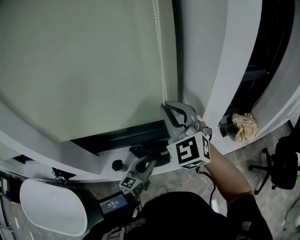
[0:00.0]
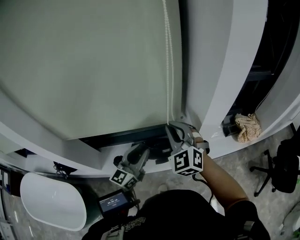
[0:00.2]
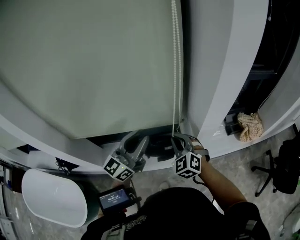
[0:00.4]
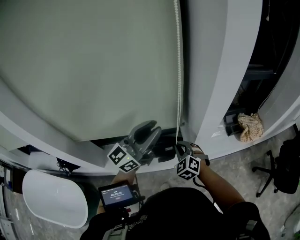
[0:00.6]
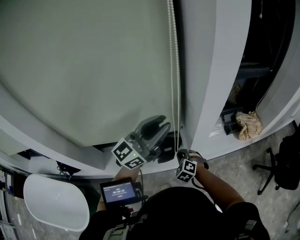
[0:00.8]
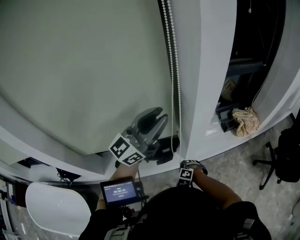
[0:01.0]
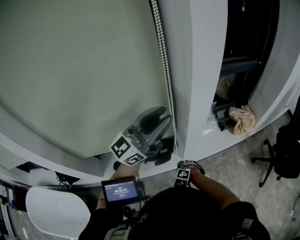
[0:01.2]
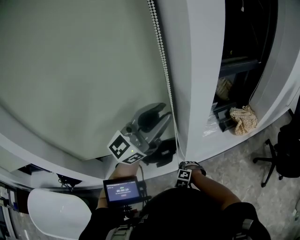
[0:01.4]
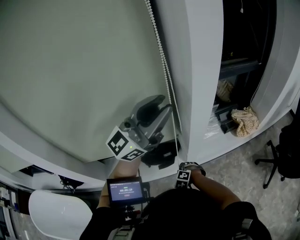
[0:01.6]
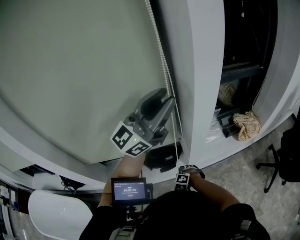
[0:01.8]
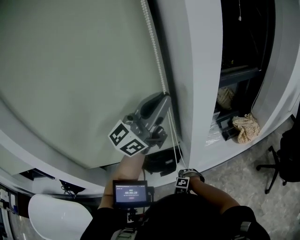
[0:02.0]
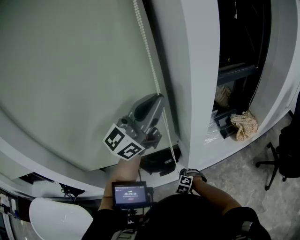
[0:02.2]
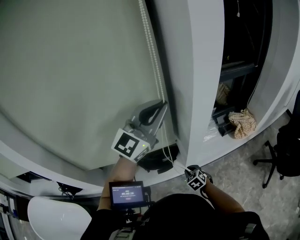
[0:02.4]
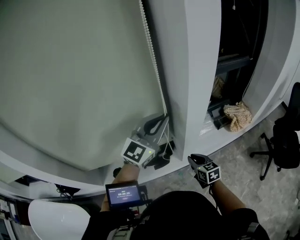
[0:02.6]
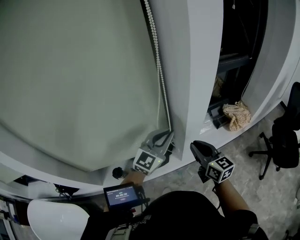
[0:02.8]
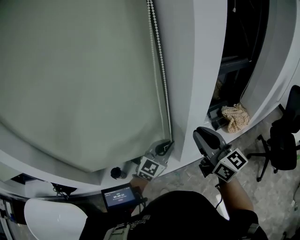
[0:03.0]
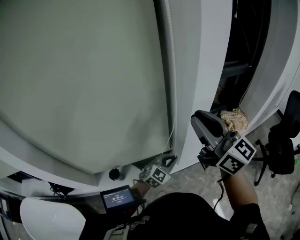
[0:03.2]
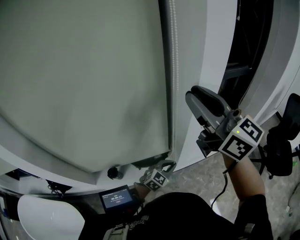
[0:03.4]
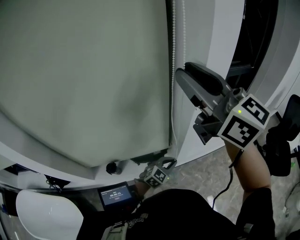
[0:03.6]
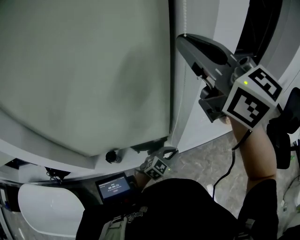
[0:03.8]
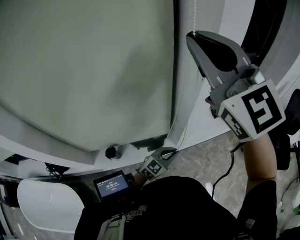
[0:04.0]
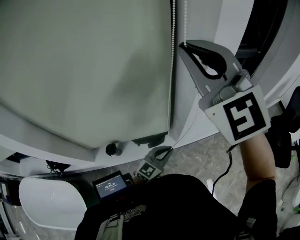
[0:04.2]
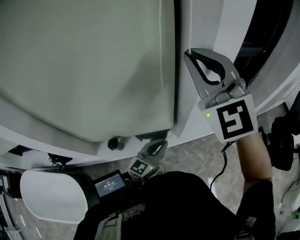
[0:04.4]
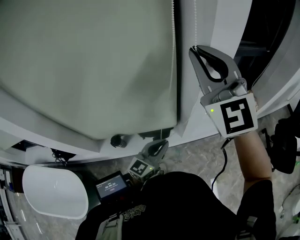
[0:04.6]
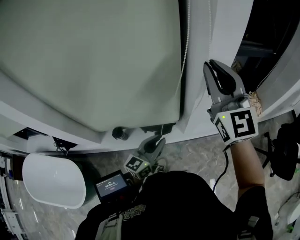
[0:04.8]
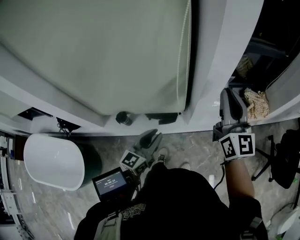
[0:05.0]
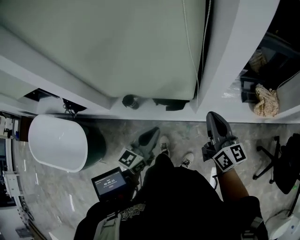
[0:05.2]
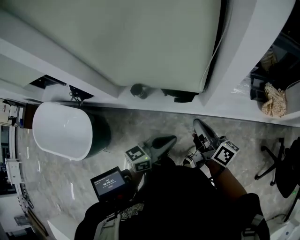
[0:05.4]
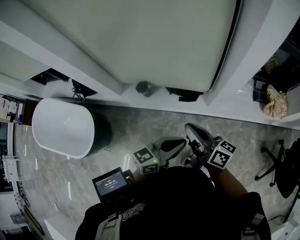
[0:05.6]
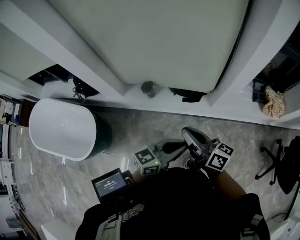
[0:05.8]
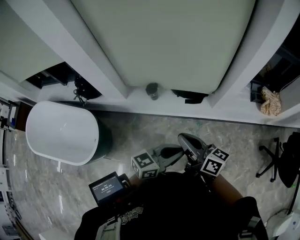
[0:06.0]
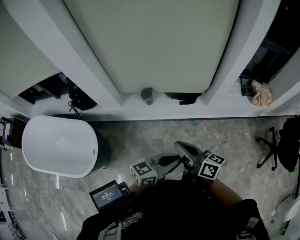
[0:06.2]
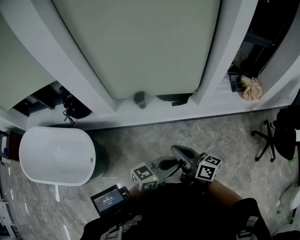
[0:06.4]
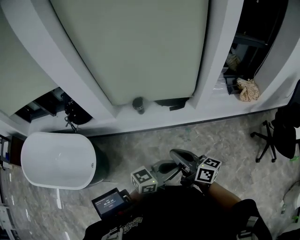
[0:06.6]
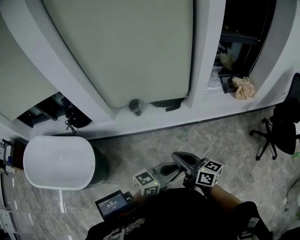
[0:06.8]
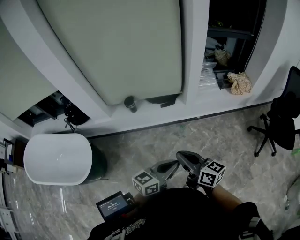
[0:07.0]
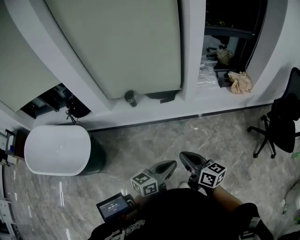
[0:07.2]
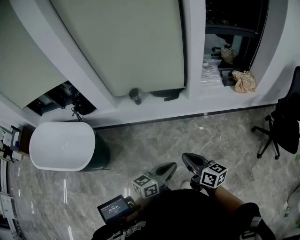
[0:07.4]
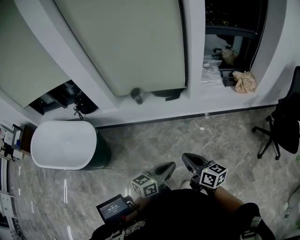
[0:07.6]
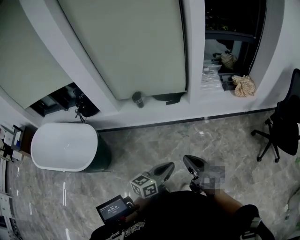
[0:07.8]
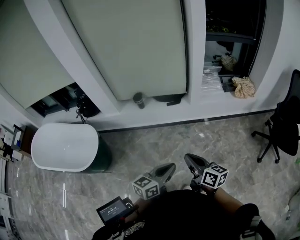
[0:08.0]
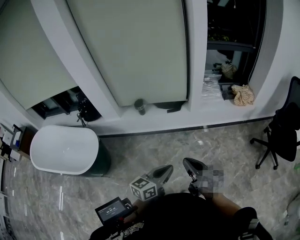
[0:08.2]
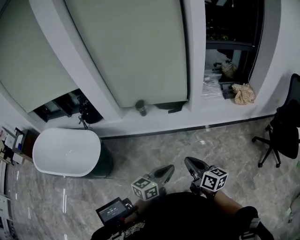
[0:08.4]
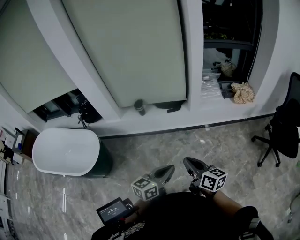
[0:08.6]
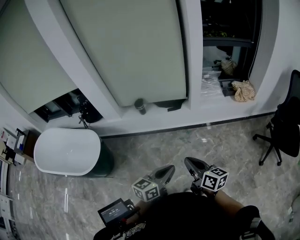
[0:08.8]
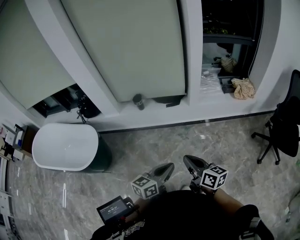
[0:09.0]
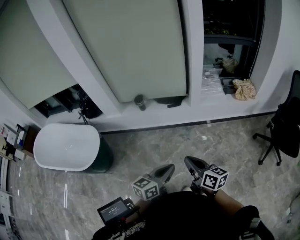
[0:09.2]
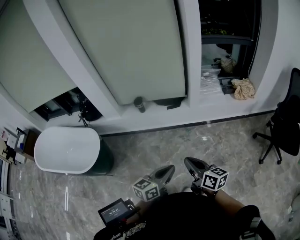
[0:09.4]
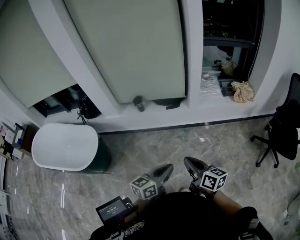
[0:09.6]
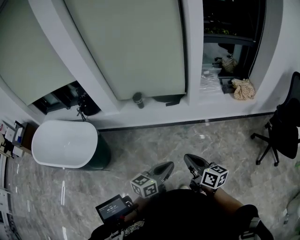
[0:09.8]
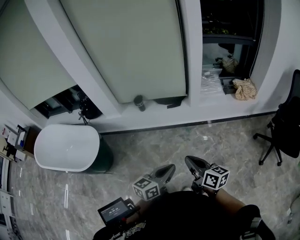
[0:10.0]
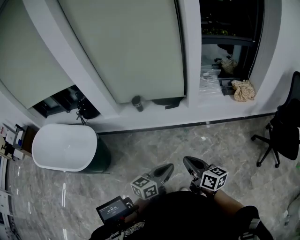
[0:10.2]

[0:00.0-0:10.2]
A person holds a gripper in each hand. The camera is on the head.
0:00.0 to 0:01.4: The left gripper moves upward, approximately 35 cm, and rotates roughly 50 degrees. The right gripper travels downward by roughly 50 cm, and tilts its fingers roughly 60 degrees downward.
0:01.4 to 0:03.0: The left gripper heads downward, covering roughly 25 cm, angles its fingers downward, by roughly 30 degrees, and closes up; the right gripper is displaced upward by roughly 40 cm, and tilts its fingers approximately 70 degrees upward.
0:03.0 to 0:04.4: The left gripper is displaced backward by about 10 cm, travels downward and back again, some 15 cm each way, and rotates roughly 20 degrees. Meanwhile the right gripper heads upward and to the left, covering approximately 20 cm, and rotates around the line of its fingers by roughly 50 degrees, counterclockwise from behind.
0:04.4 to 0:05.8: The right gripper goes some 40 cm downward and backward, and rotates around the line of its fingers by about 80 degrees, clockwise from behind; the left gripper heads backward, covering approximately 25 cm, and swivels roughly 20 degrees.
0:05.8 to 0:07.2: The right gripper is displaced backward and to the right by some 30 cm, and rotates roughly 20 degrees. The left gripper is displaced backward by some 25 cm.
0:07.2 to 0:08.8: The right gripper goes some 5 cm backward; the left gripper shifts by approximately 5 cm.
0:08.8 to 0:10.2: The grippers move only a little.

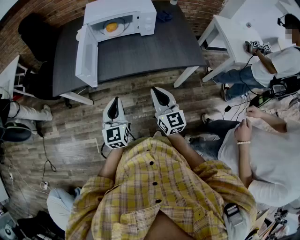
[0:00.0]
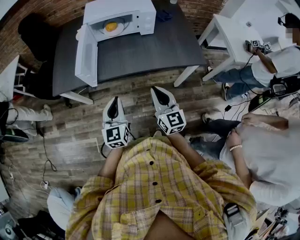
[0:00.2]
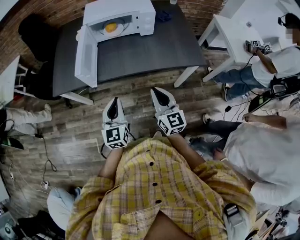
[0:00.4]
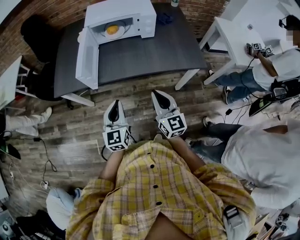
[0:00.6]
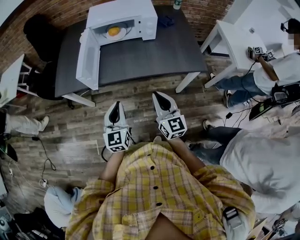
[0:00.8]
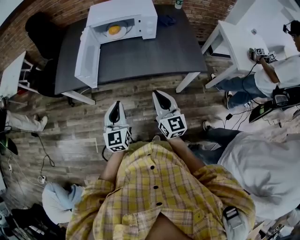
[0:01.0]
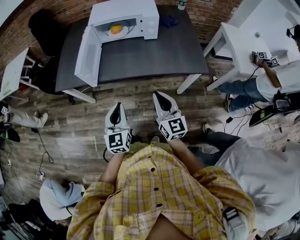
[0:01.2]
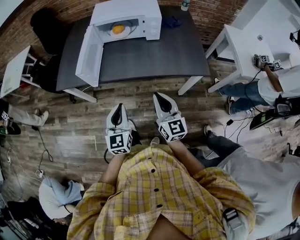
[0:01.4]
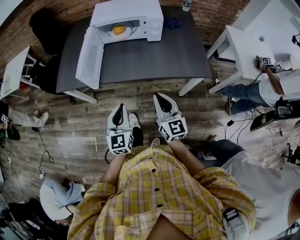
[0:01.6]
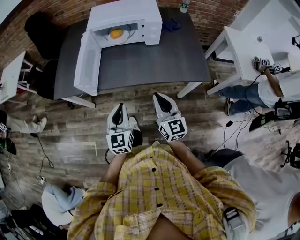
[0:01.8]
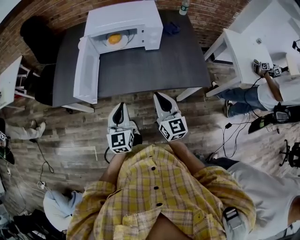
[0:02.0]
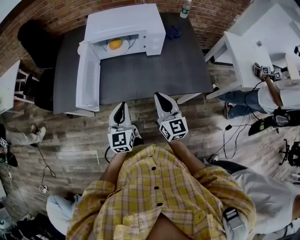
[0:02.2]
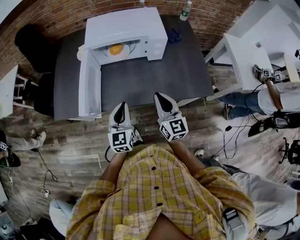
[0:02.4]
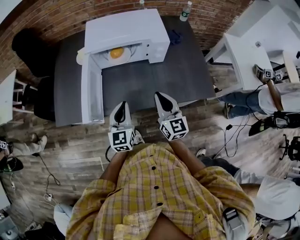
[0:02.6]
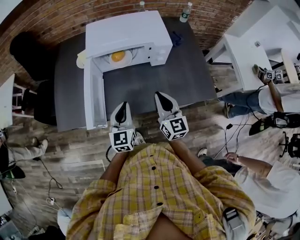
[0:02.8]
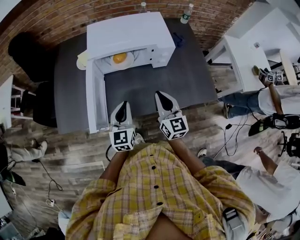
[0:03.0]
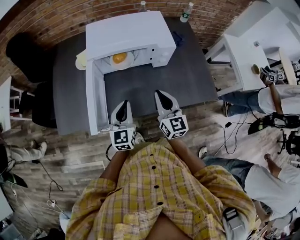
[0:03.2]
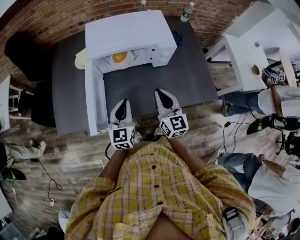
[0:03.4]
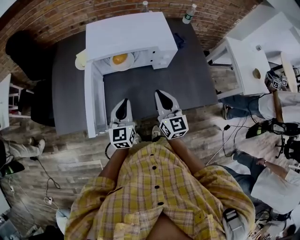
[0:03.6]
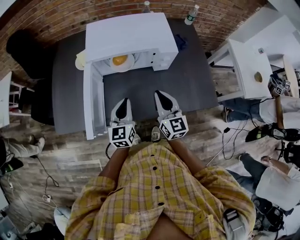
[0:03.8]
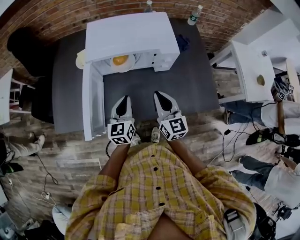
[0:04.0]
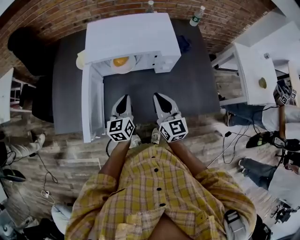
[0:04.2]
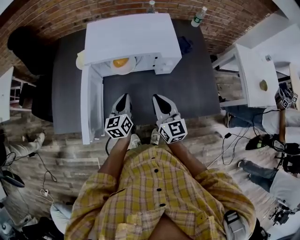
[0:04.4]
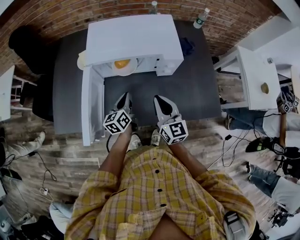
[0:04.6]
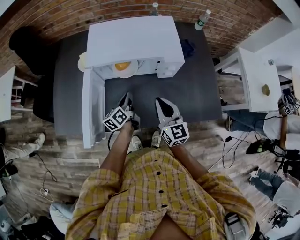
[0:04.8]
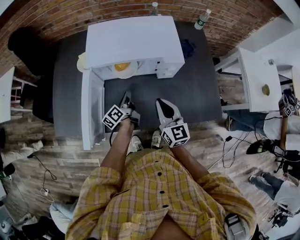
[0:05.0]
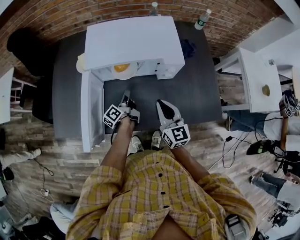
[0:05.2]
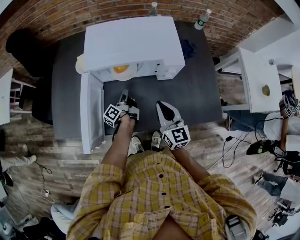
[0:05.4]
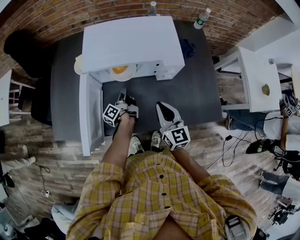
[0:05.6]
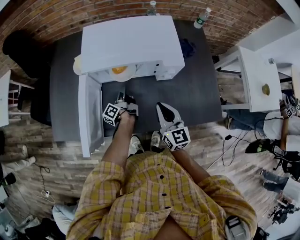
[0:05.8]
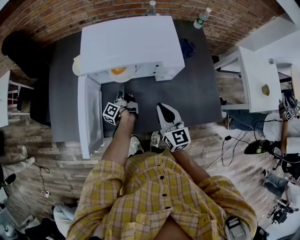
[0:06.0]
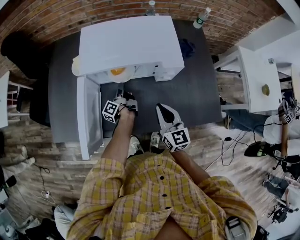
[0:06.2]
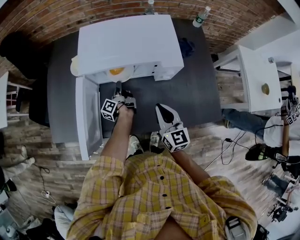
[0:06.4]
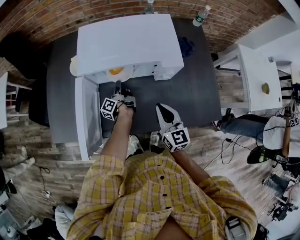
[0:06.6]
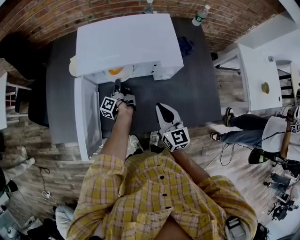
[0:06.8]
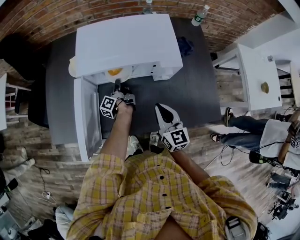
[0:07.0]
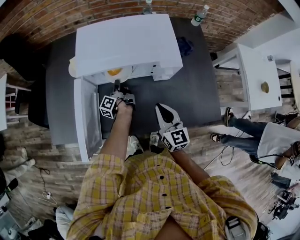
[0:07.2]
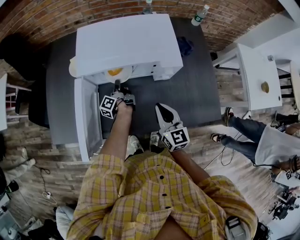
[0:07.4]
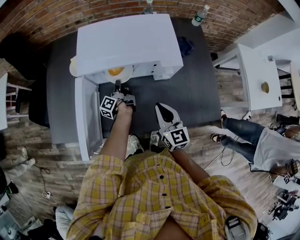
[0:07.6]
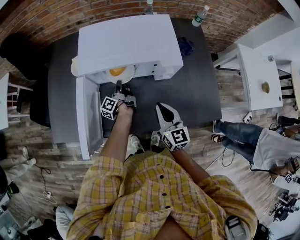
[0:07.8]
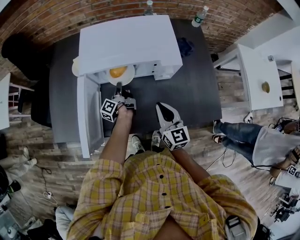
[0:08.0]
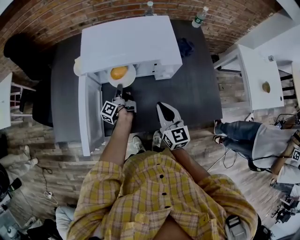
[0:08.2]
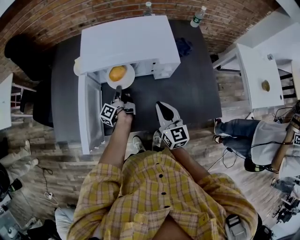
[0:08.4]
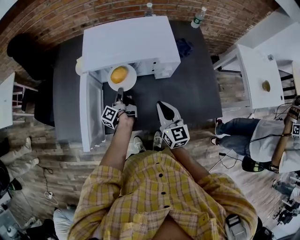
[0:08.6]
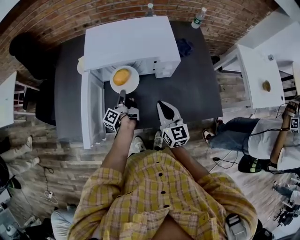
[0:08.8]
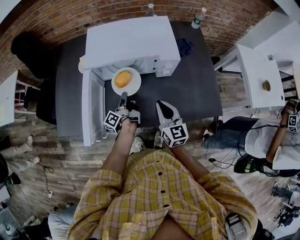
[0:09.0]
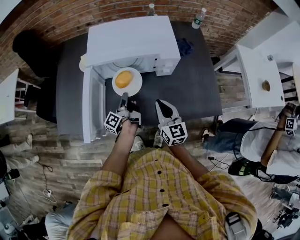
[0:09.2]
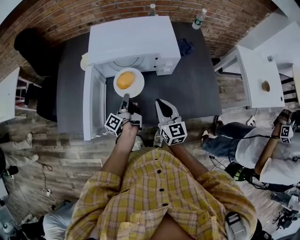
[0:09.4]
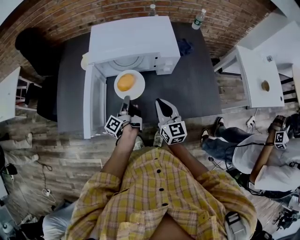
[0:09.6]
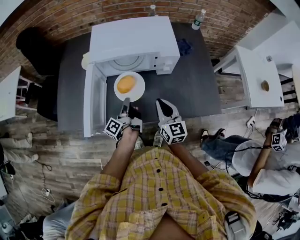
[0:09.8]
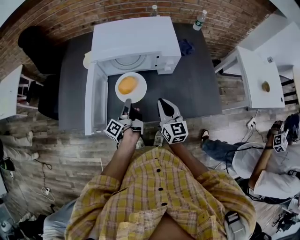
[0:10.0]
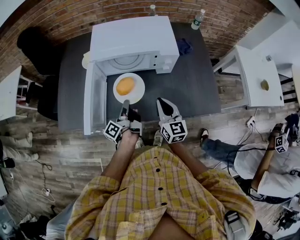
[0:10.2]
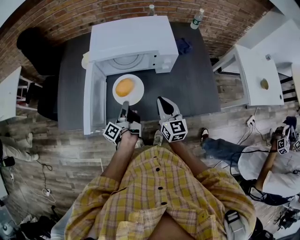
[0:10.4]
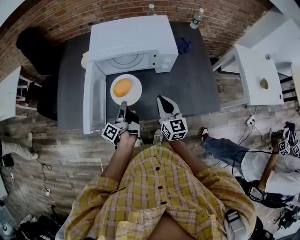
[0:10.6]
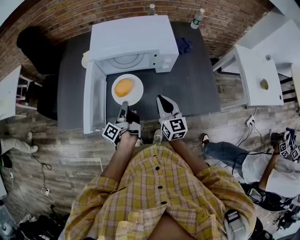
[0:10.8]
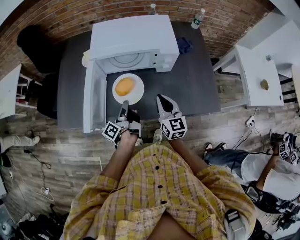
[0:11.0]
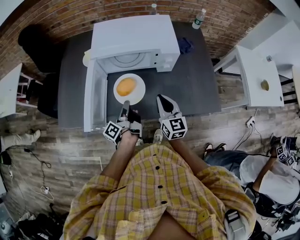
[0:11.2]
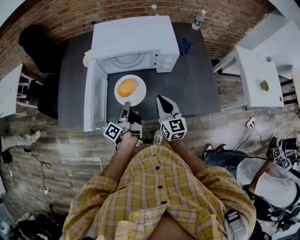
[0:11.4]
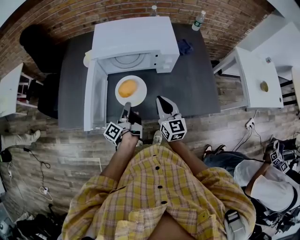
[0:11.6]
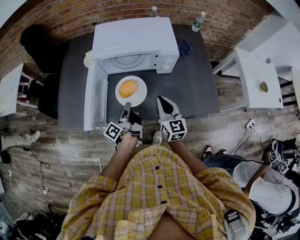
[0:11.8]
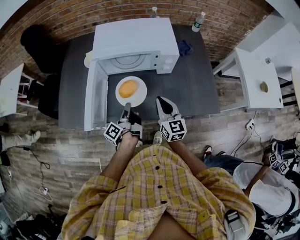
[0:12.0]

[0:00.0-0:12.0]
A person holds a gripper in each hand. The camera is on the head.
0:00.0 to 0:01.6: The left gripper shifts about 5 cm to the right.
0:01.6 to 0:03.0: Both grippers travel together forward, approximately 25 cm.
0:03.0 to 0:04.4: The right gripper is displaced forward by roughly 5 cm, while the left gripper shifts roughly 10 cm forward and downward, and turns by some 20 degrees.
0:04.4 to 0:06.0: The left gripper heads downward and forward, covering some 15 cm, twists some 60 degrees counterclockwise, seen from behind, and opens its fingers.
0:06.0 to 0:07.6: The left gripper closes its fingers.
0:07.6 to 0:09.0: The left gripper is displaced backward and upward by some 15 cm.
0:09.0 to 0:10.4: The left gripper shifts approximately 10 cm backward and upward.
0:10.4 to 0:12.0: The grippers move only a little.

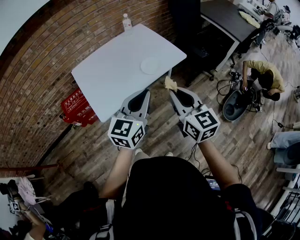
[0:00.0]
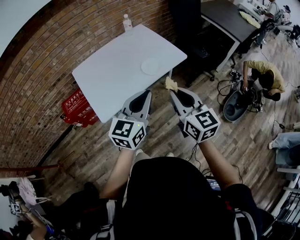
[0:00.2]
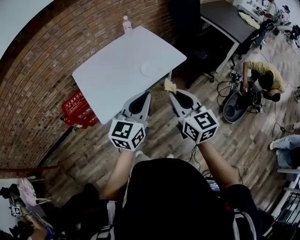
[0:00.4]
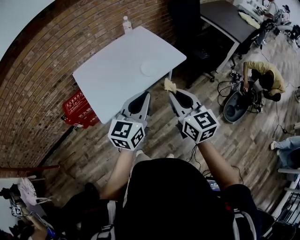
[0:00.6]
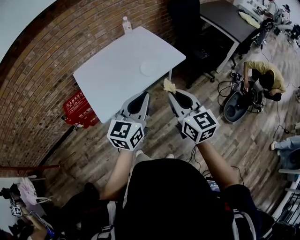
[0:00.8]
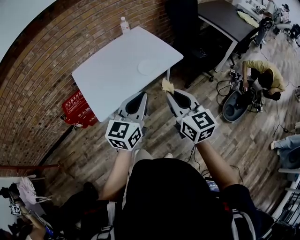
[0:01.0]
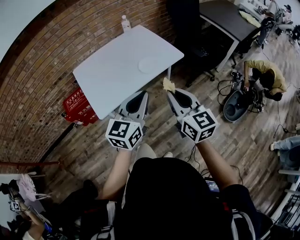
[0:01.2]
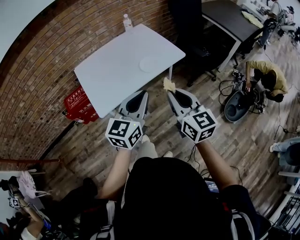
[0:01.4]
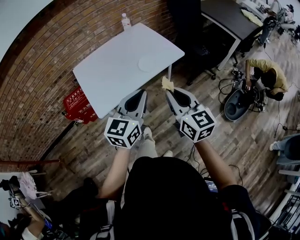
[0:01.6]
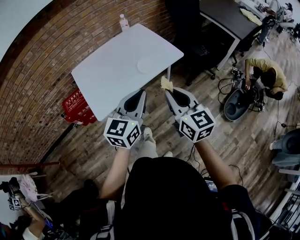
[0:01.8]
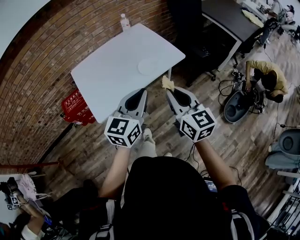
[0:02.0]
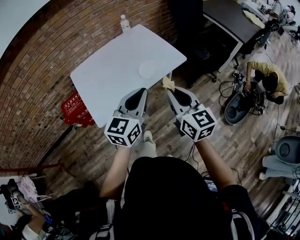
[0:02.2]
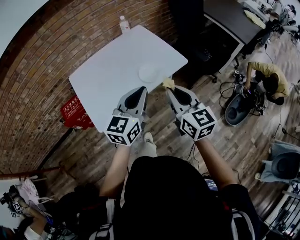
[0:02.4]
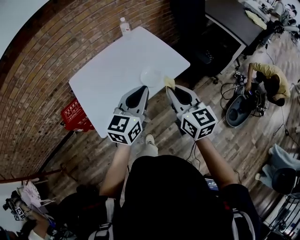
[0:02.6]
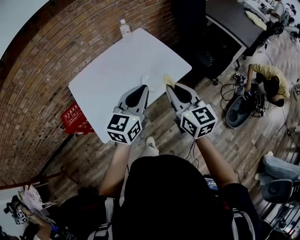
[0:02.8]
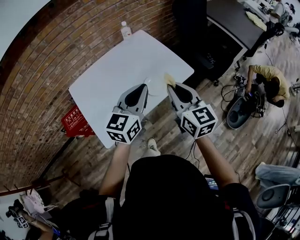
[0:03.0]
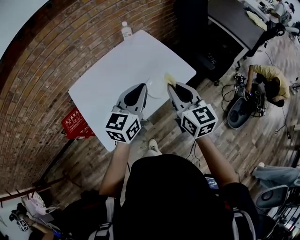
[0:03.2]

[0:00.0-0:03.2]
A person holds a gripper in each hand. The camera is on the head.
0:00.0 to 0:01.6: The grippers make only small movements.
0:01.6 to 0:03.2: Both grippers move forward, approximately 25 cm.
